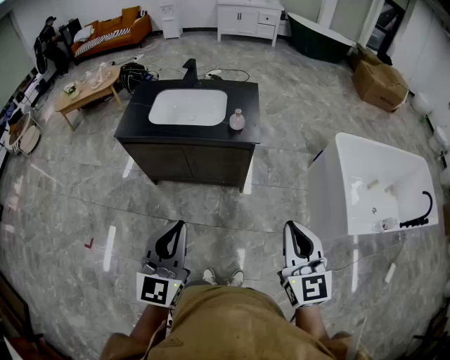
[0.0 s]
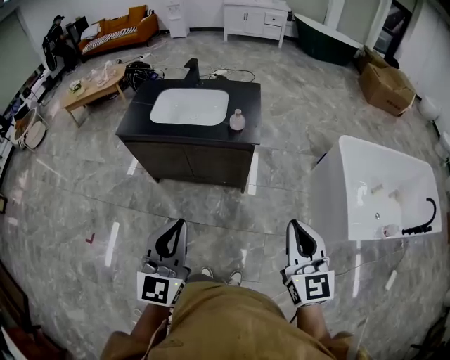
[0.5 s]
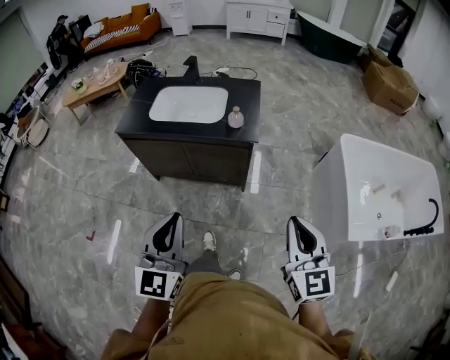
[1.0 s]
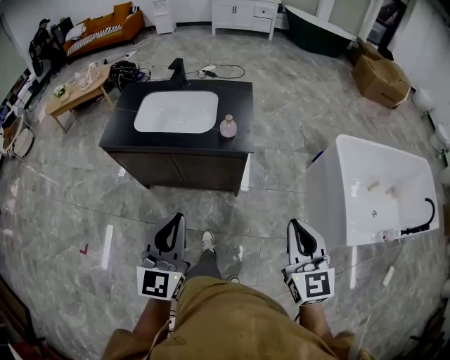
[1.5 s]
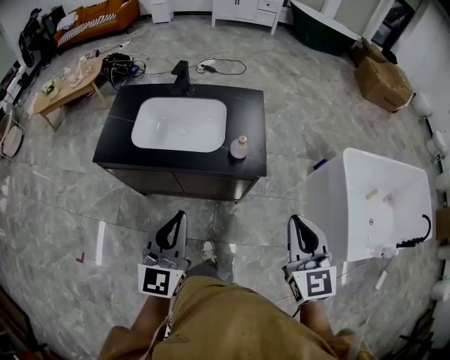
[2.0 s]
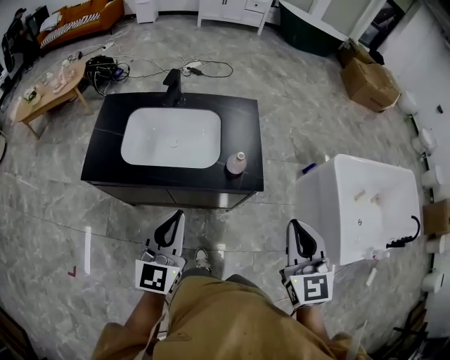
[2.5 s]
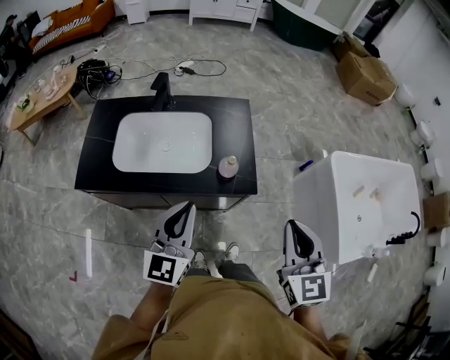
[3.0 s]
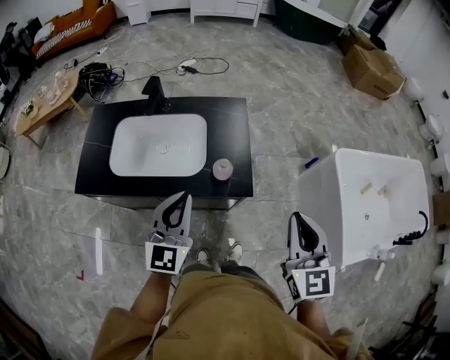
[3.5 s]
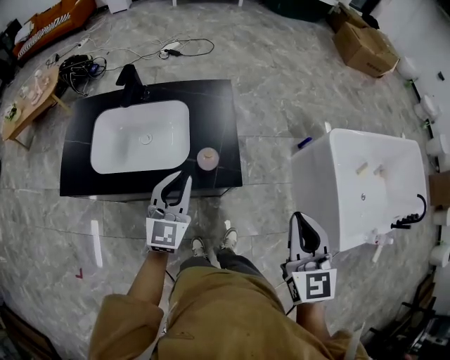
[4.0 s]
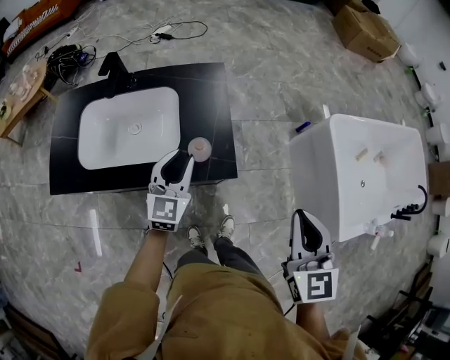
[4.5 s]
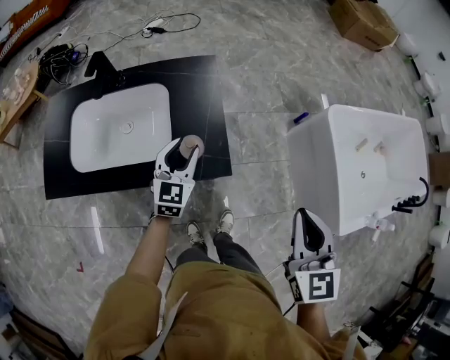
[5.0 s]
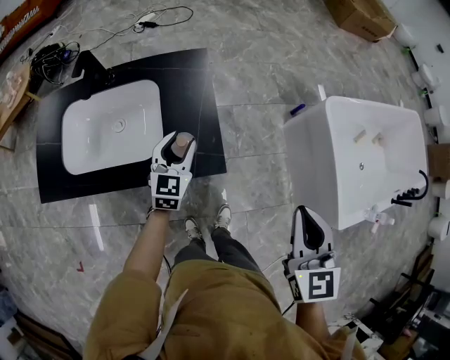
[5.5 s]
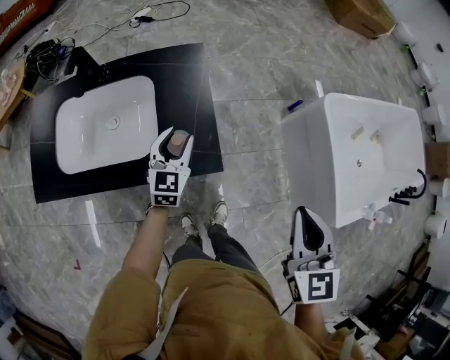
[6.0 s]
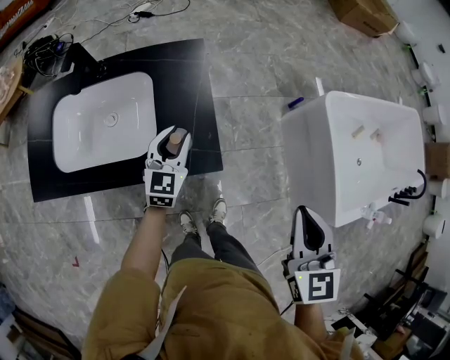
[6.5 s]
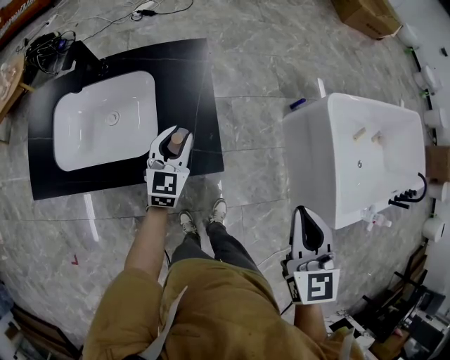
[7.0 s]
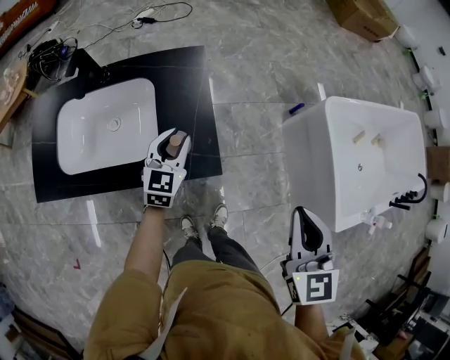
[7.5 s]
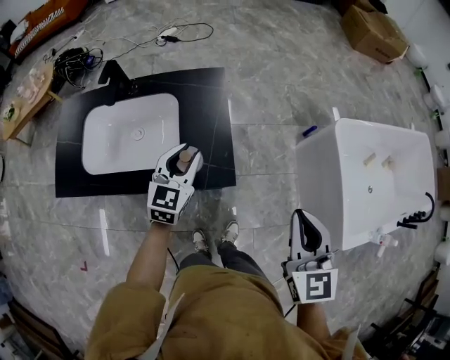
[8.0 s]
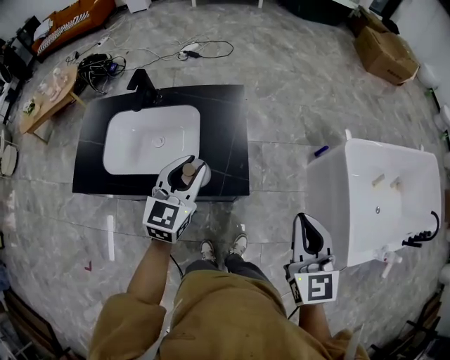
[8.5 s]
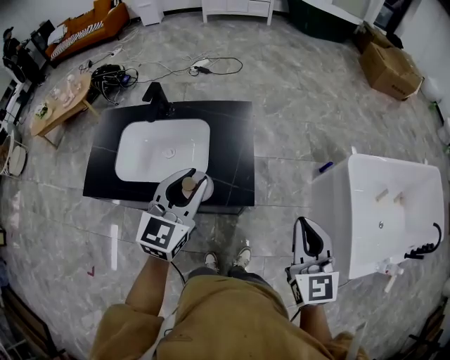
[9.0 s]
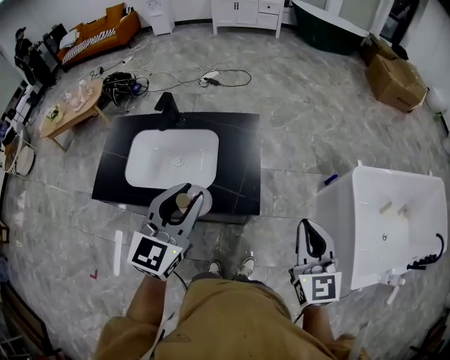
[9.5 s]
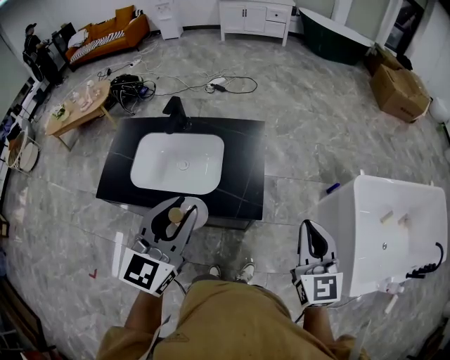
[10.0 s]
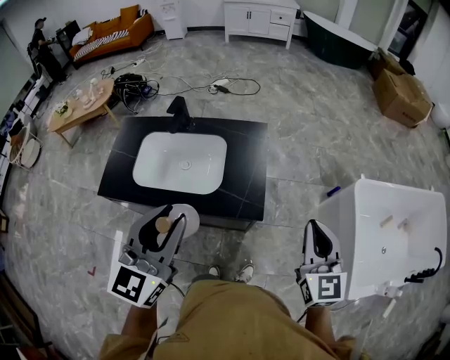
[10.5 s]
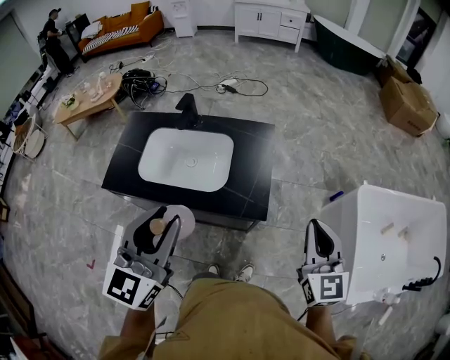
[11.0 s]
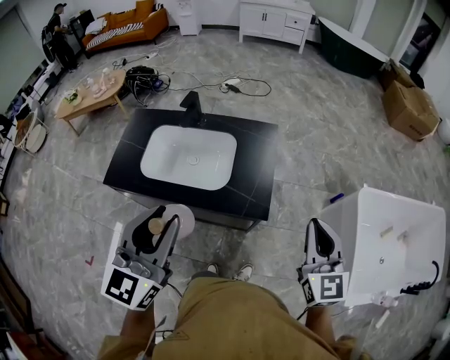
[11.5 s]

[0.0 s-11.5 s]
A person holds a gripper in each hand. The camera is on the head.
0.0 to 2.0 s: The grippers both shift forward by some 25 cm.
2.0 to 4.0 s: The right gripper heads forward and to the right, covering some 15 cm. Meanwhile the left gripper is displaced forward and downward by some 25 cm.
4.0 to 6.0 s: The right gripper shifts roughly 10 cm downward and to the right. The left gripper goes approximately 20 cm downward, forward and to the right, and opens its fingers.
6.0 to 7.5 s: There are only small adjustments of the grippers.
7.5 to 9.5 s: The left gripper is displaced upward and backward by roughly 30 cm. Meanwhile the right gripper travels upward and to the left by about 10 cm.
9.5 to 11.5 s: The left gripper goes roughly 15 cm backward, to the left and upward.

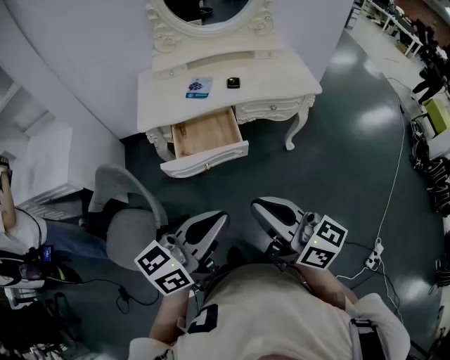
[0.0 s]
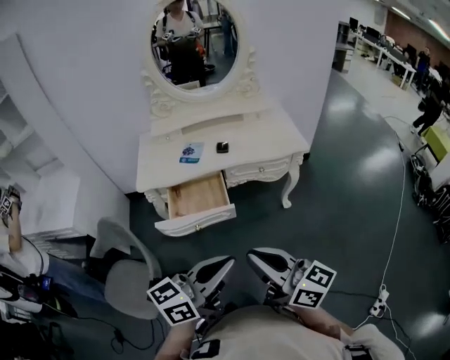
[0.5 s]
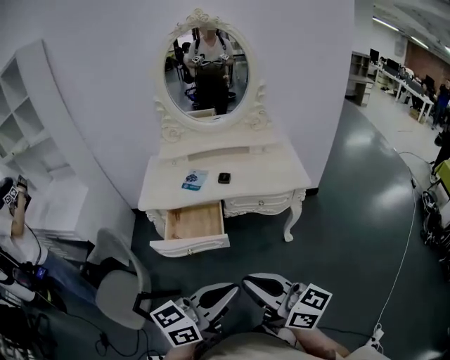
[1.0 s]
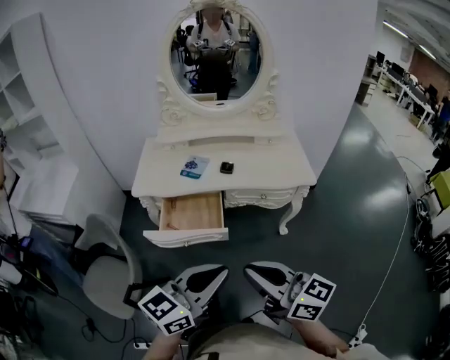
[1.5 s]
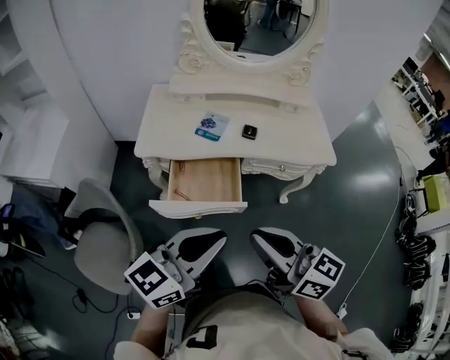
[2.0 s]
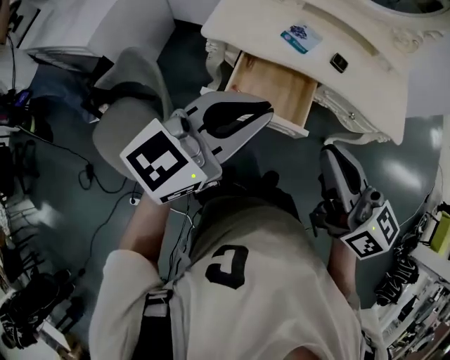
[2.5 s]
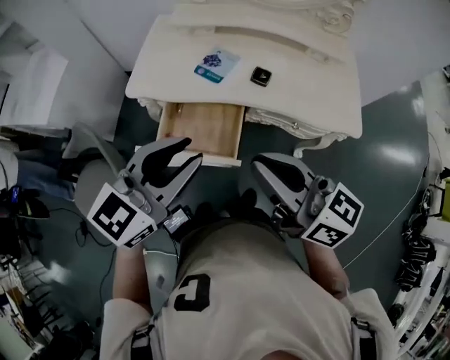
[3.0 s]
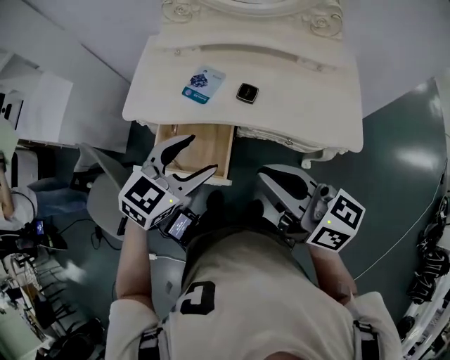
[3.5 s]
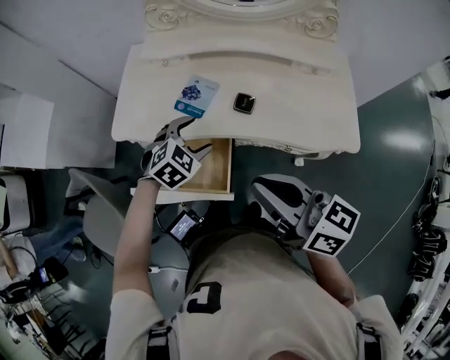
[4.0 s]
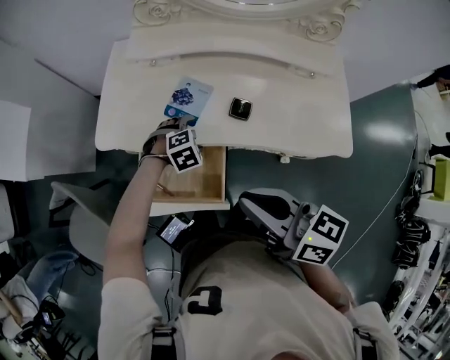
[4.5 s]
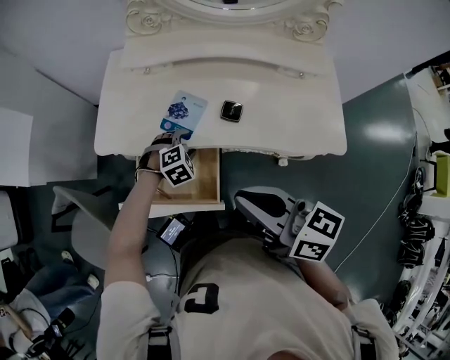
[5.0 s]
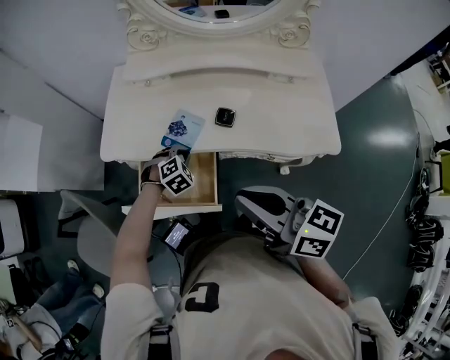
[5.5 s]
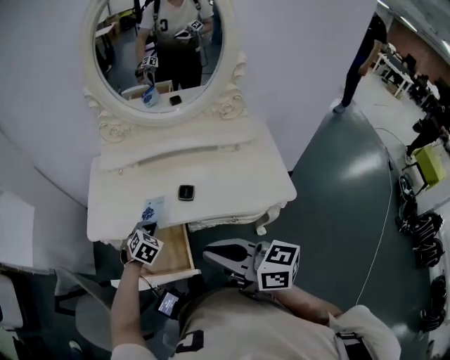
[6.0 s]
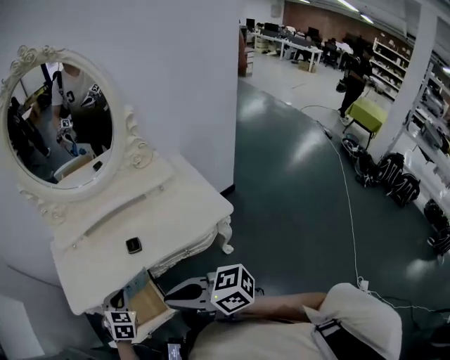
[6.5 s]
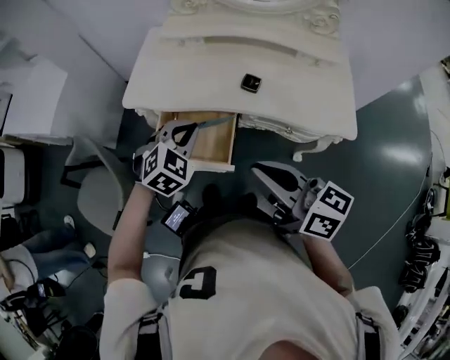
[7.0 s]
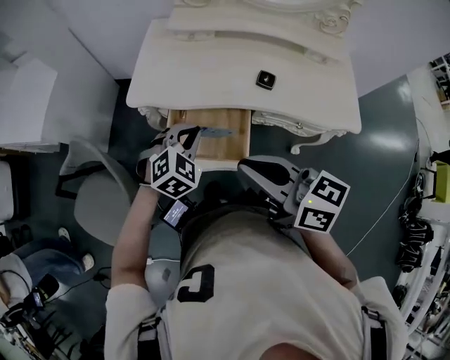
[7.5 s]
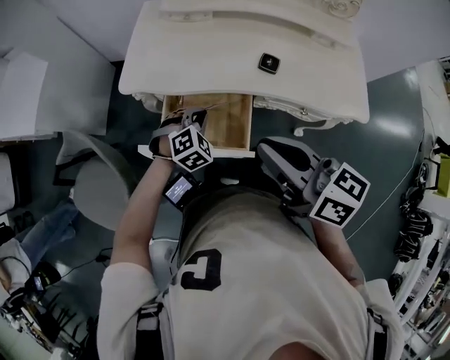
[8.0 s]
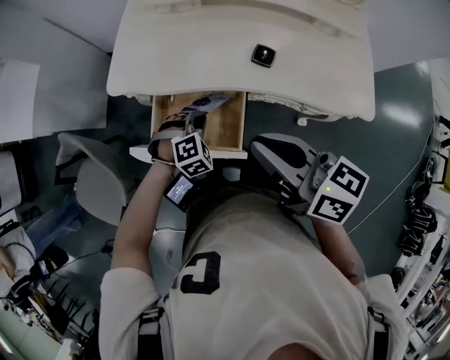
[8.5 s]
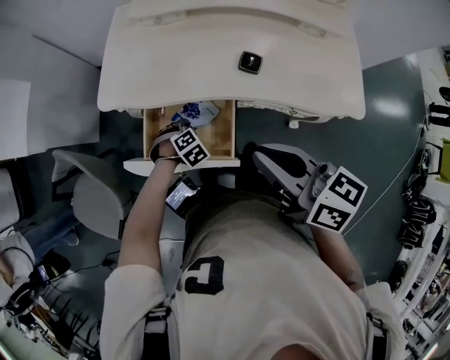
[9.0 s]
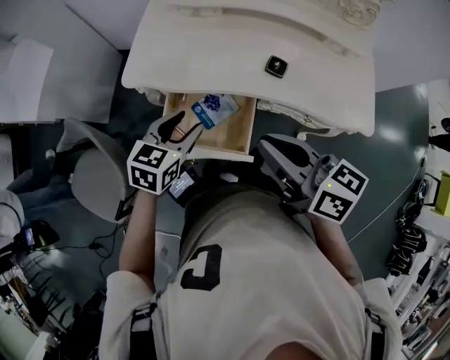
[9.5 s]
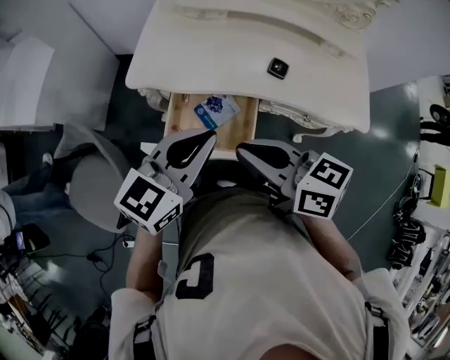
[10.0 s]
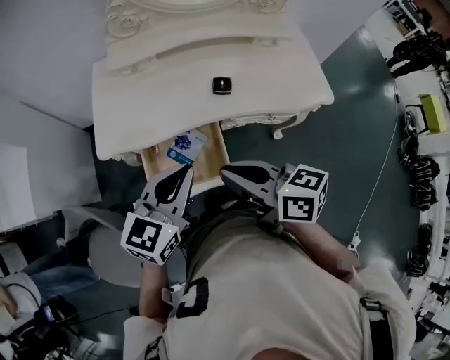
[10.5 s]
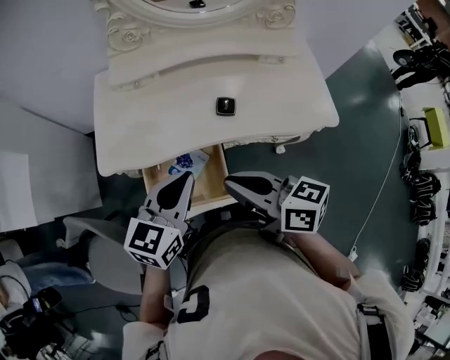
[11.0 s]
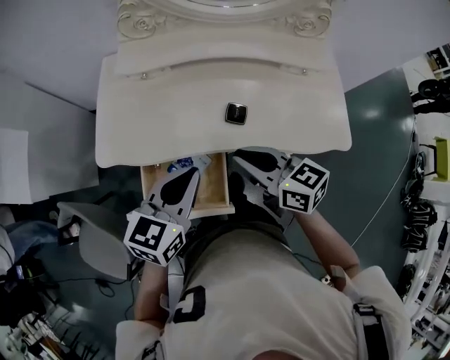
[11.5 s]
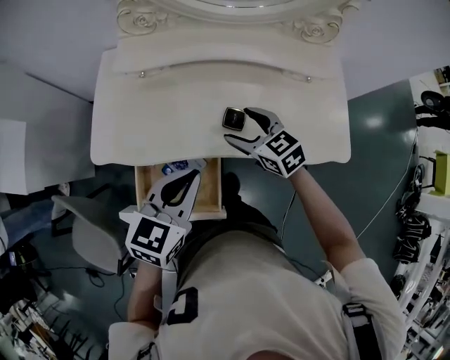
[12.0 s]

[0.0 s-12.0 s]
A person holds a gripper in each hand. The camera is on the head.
0.0 to 2.0 s: The grippers both shift forward by some 15 cm. The left gripper travels to the right and back again, about 20 cm each way.
2.0 to 4.0 s: The right gripper is displaced forward and to the right by roughly 25 cm, while the left gripper is displaced forward and downward by roughly 40 cm, angles its fingers downward, by about 50 degrees, and opens up.
4.0 to 6.0 s: The left gripper travels downward by roughly 5 cm, and closes up.
6.0 to 8.0 s: The right gripper goes roughly 10 cm to the left. The left gripper shifts some 10 cm to the left and backward, and goes upward and returns, about 15 cm each way.
8.0 to 10.0 s: The right gripper changes place by some 10 cm, while the left gripper is displaced upward by some 20 cm, angles its fingers upward, by some 40 degrees, and opens and closes again.
10.0 to 12.0 s: The right gripper is displaced forward, to the right and downward by some 35 cm, turns by roughly 30 degrees, and opens; the left gripper moves forward and to the right, about 15 cm.

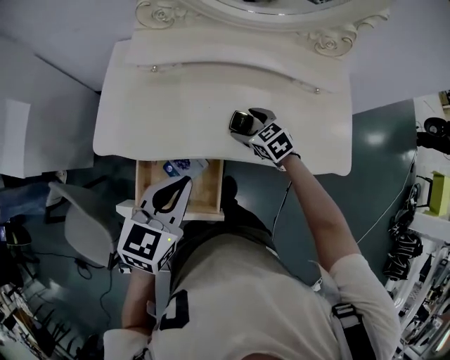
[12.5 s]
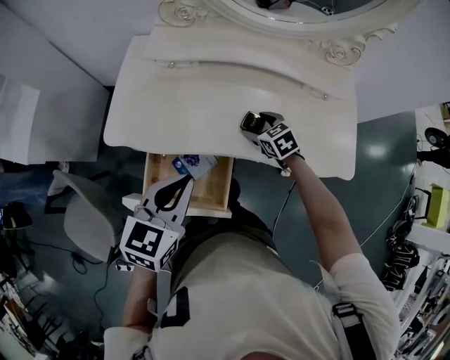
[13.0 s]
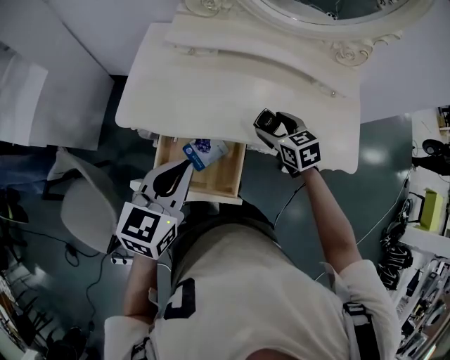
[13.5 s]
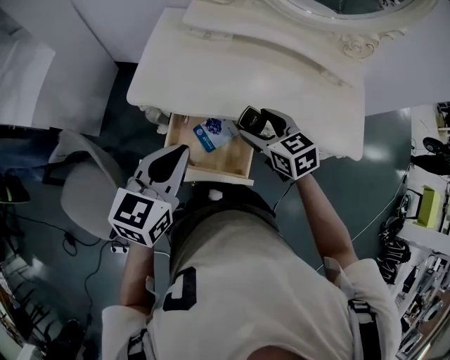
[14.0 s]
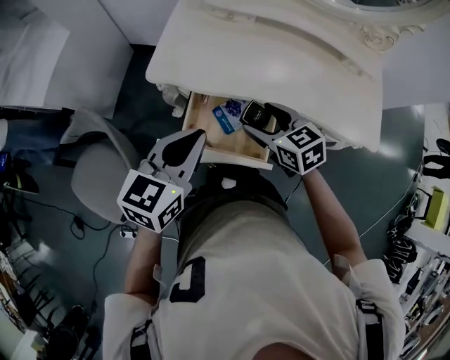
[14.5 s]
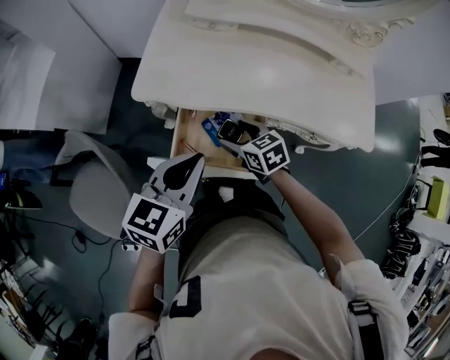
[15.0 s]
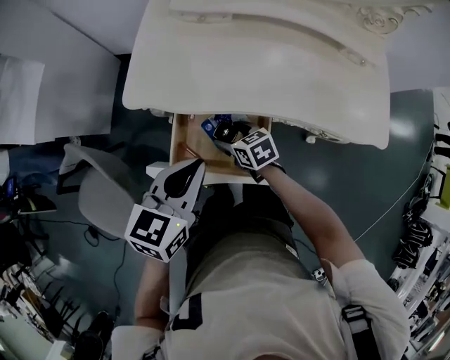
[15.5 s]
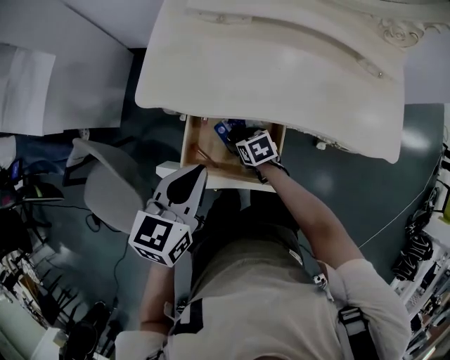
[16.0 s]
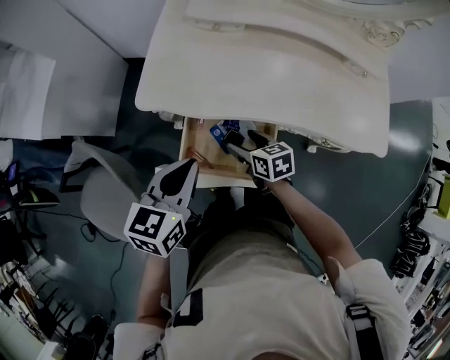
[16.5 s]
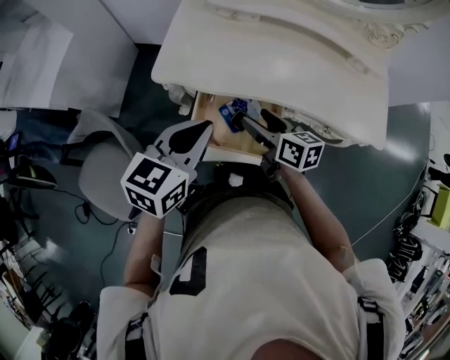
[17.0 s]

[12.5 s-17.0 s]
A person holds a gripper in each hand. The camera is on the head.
12.5 to 14.5 s: The right gripper shifts approximately 25 cm to the left, backward and upward, while the left gripper travels to the left and backward by roughly 20 cm.
14.5 to 17.0 s: The right gripper moves about 25 cm downward and comes back, and rotates some 30 degrees.
